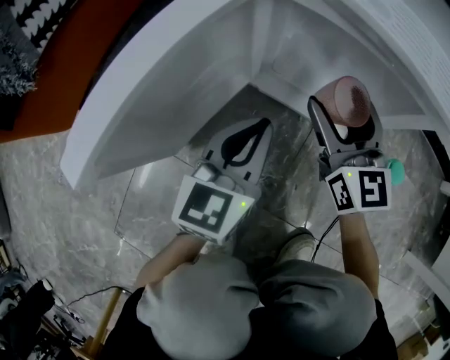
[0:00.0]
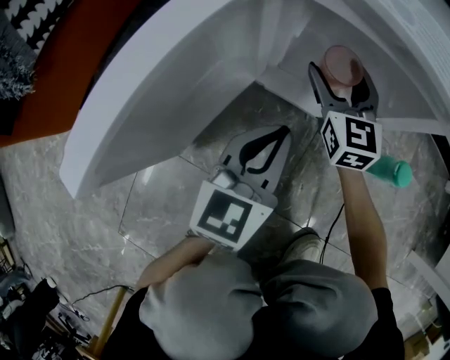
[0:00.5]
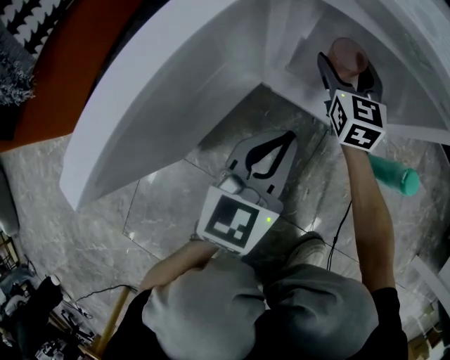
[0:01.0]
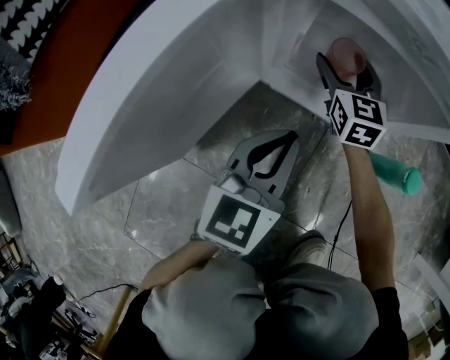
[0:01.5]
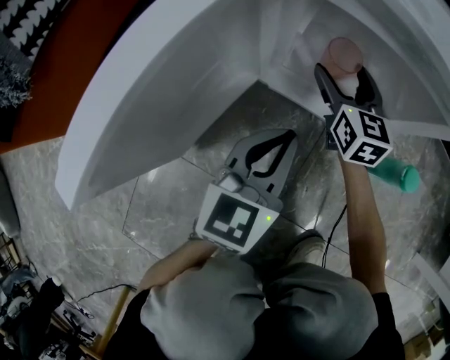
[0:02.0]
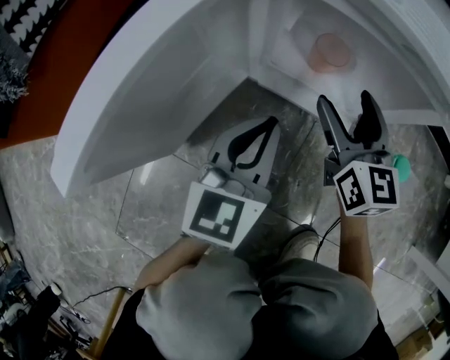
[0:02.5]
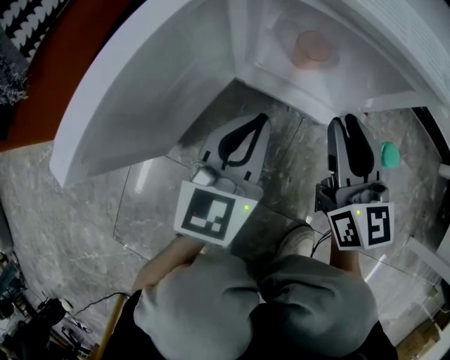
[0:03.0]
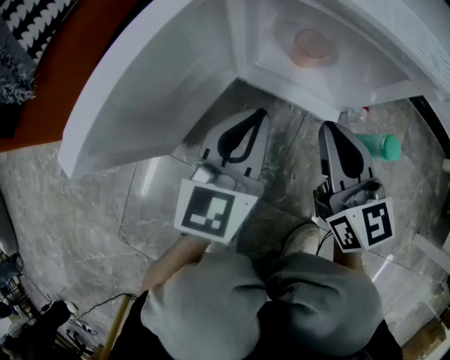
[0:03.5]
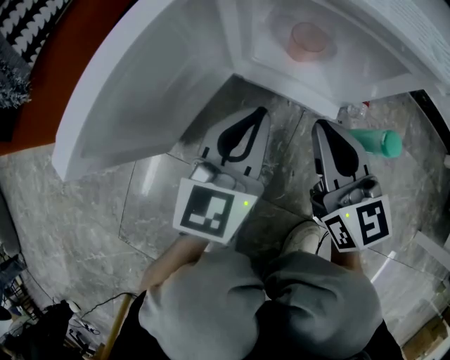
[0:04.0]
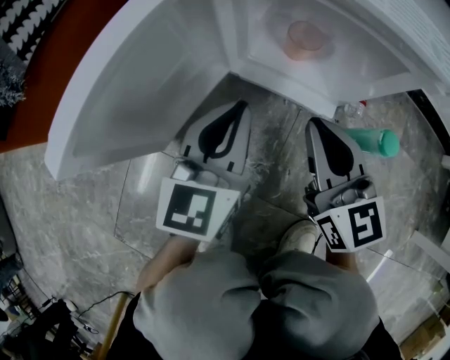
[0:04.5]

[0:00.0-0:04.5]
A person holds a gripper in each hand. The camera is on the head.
0:00.0 to 0:02.0: The right gripper shifts roughly 15 cm downward and forward.
0:02.0 to 0:04.5: The left gripper moves about 5 cm. Meanwhile the right gripper goes approximately 20 cm backward and upward, and closes.

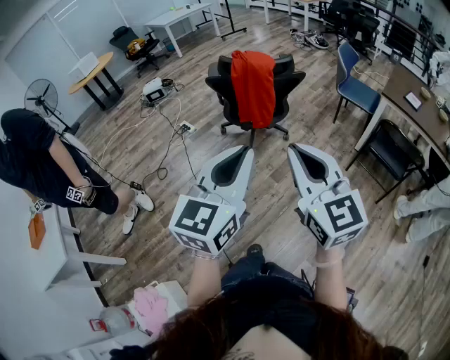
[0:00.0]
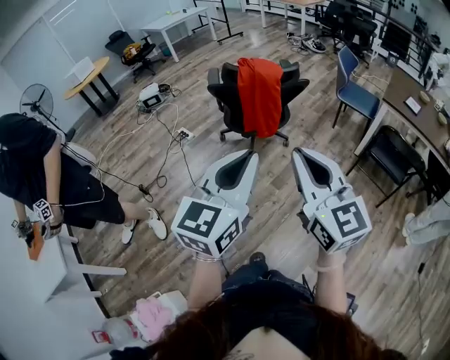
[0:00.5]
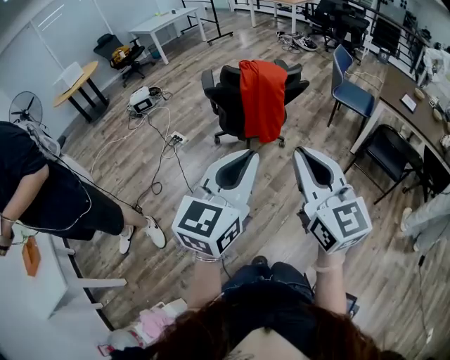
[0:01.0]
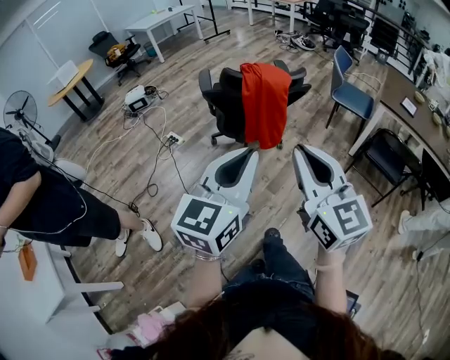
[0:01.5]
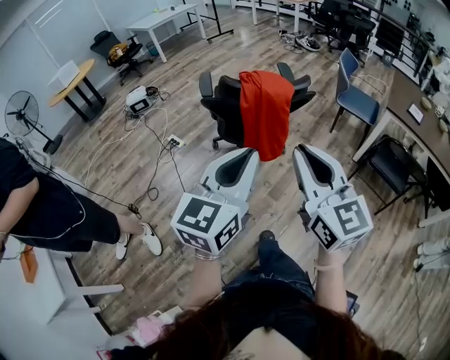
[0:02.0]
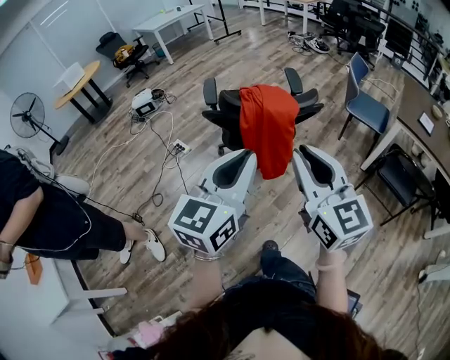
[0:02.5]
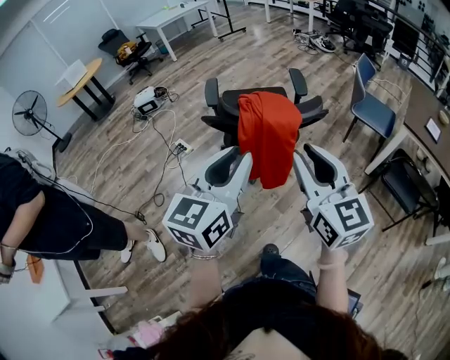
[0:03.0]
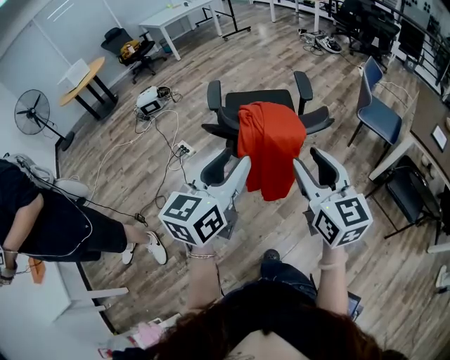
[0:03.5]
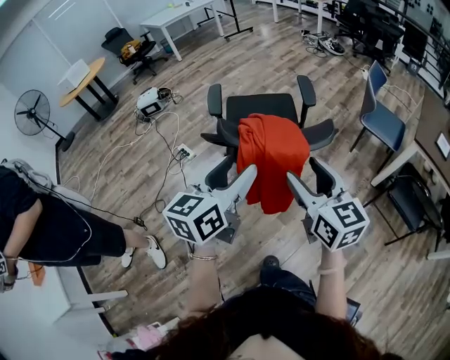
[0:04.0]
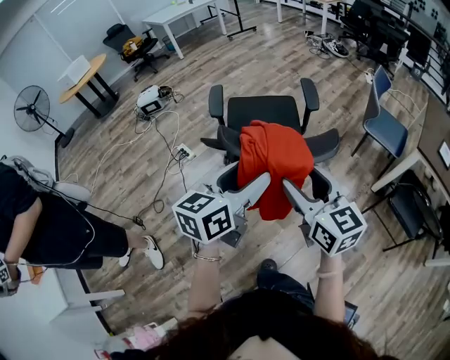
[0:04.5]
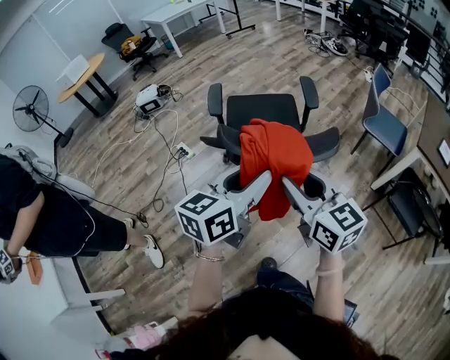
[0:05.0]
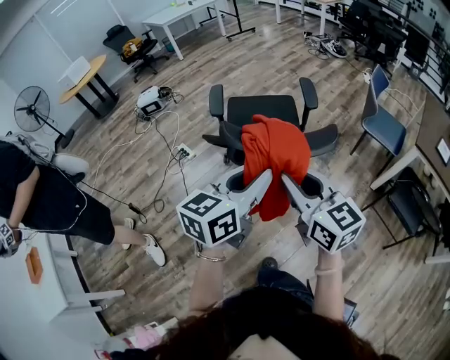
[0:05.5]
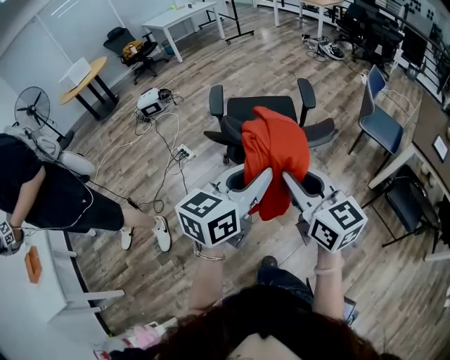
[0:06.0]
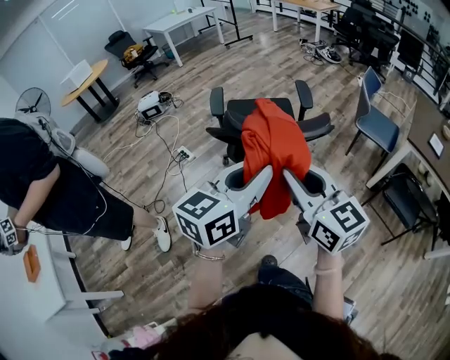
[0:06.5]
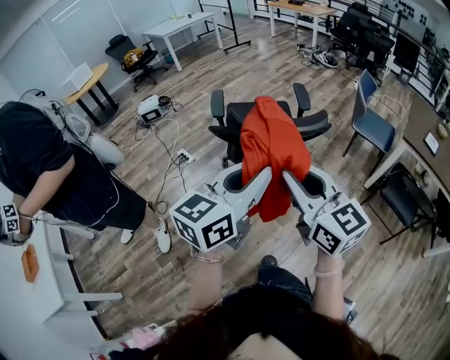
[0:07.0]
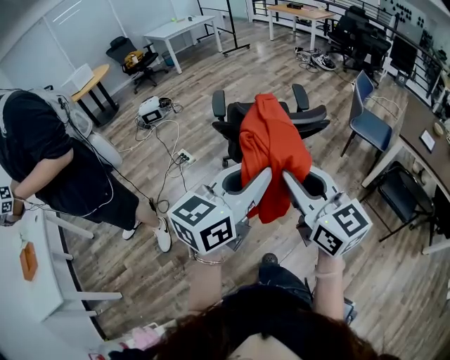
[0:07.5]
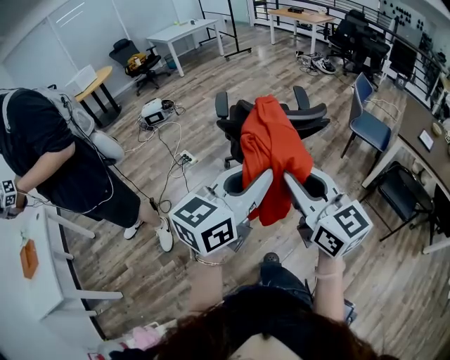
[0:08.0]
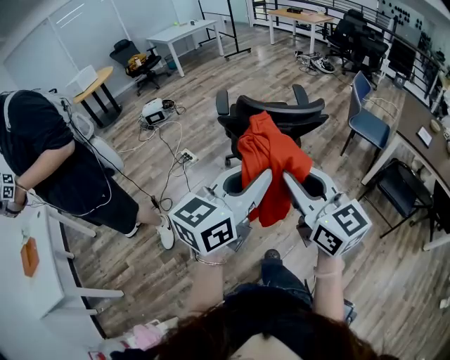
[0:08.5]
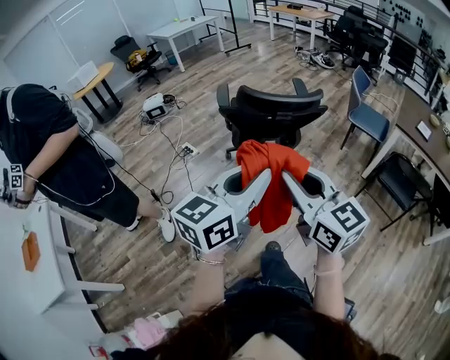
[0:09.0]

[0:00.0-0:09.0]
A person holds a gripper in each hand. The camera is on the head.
0:00.0 to 0:02.0: Both grippers move forward, some 20 cm.
0:02.0 to 0:04.5: Both grippers move forward, some 25 cm. The left gripper swivels approximately 20 degrees, and opens its fingers. Meanwhile the right gripper opens.
0:04.5 to 0:07.0: The grippers both shift backward and upward by about 15 cm. The right gripper closes up. Meanwhile the left gripper closes its fingers.
0:07.0 to 0:09.0: Both grippers travel together backward, some 15 cm.

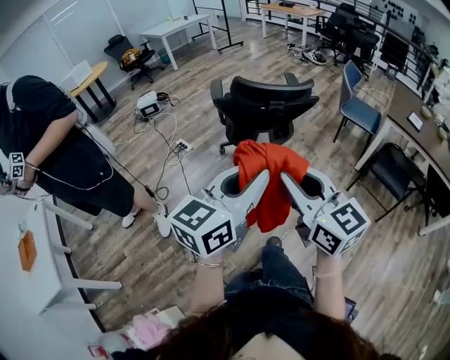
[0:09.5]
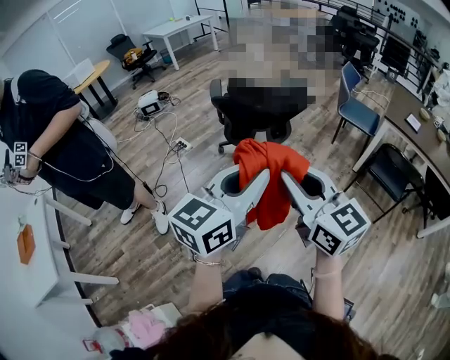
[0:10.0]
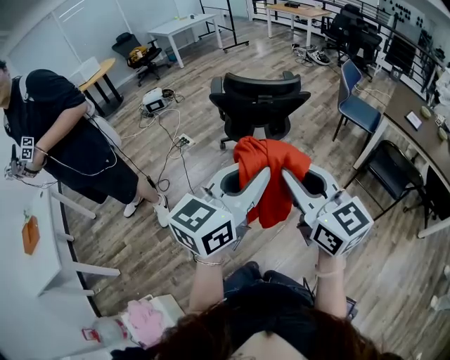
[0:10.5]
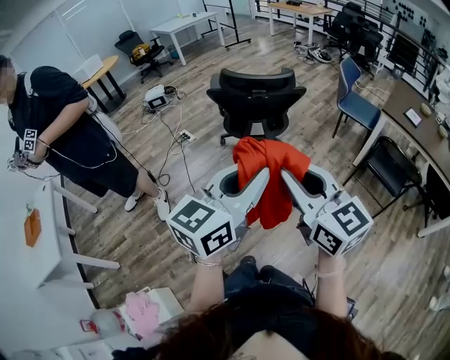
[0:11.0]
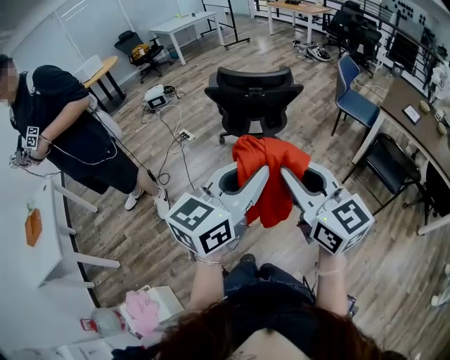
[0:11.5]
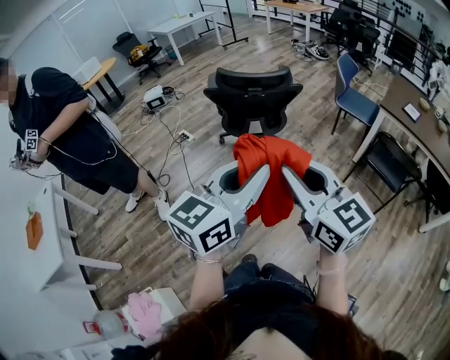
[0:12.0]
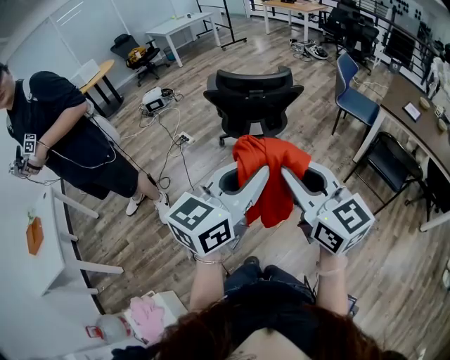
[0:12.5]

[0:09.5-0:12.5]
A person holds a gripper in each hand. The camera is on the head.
0:09.5 to 0:11.0: The two grippers go approximately 15 cm to the right and backward.
0:11.0 to 0:12.5: The grippers move only a little.

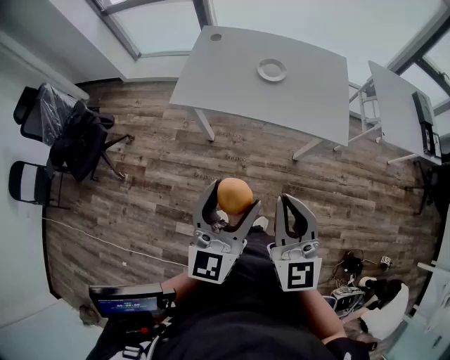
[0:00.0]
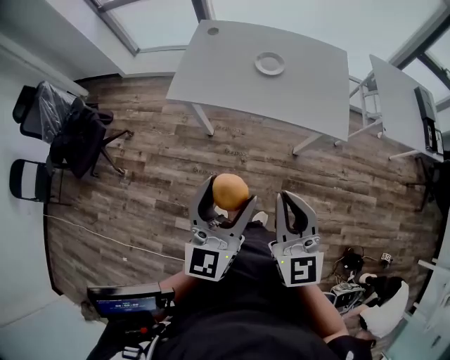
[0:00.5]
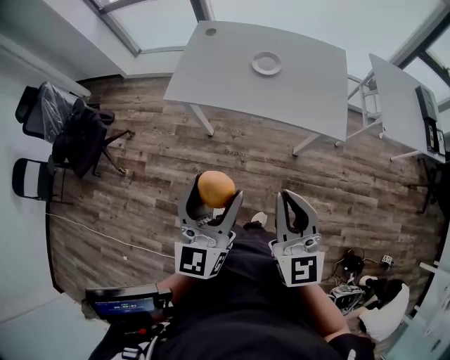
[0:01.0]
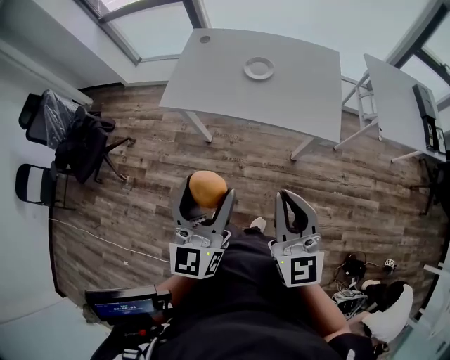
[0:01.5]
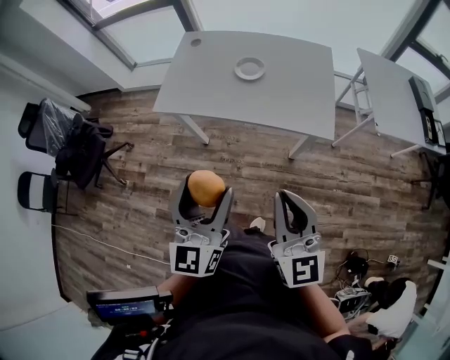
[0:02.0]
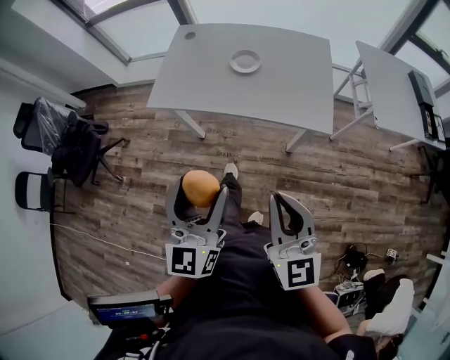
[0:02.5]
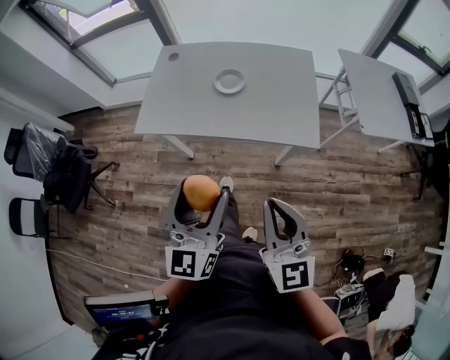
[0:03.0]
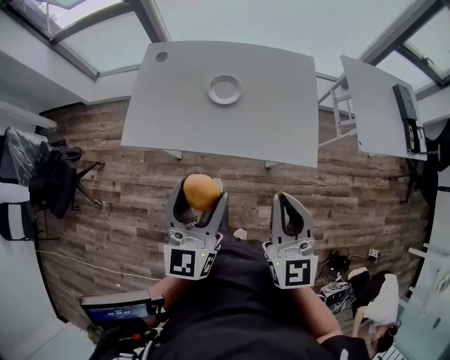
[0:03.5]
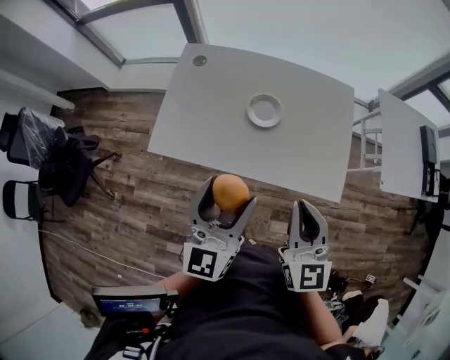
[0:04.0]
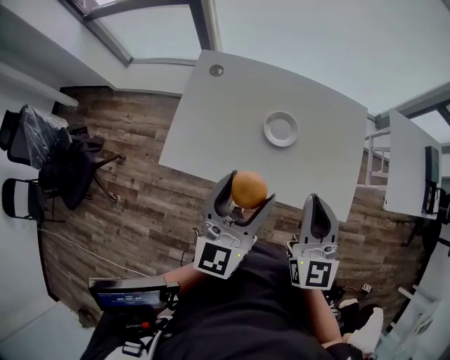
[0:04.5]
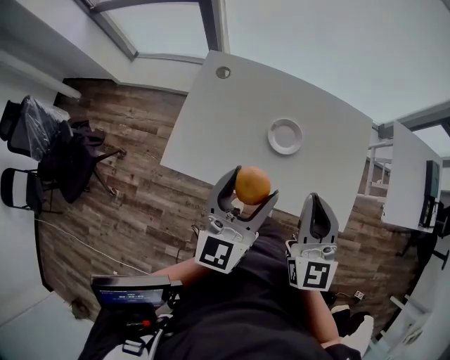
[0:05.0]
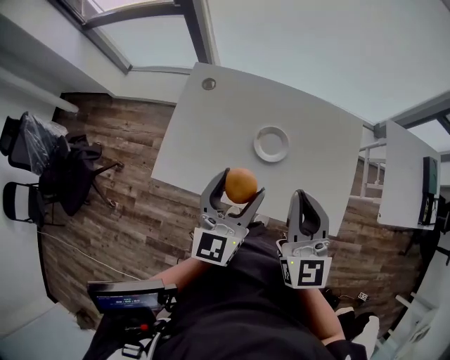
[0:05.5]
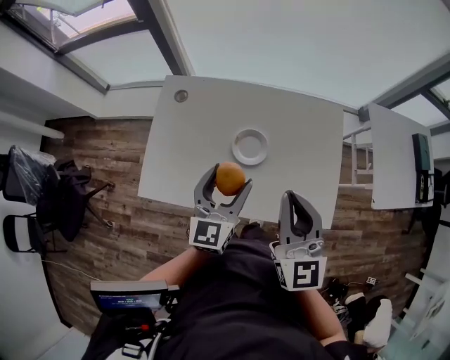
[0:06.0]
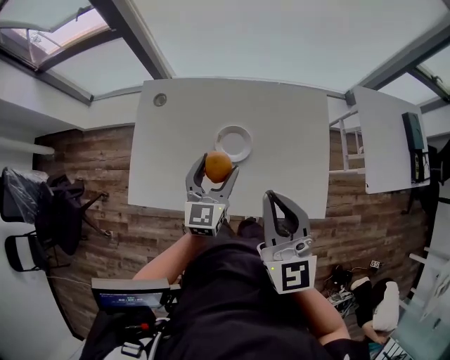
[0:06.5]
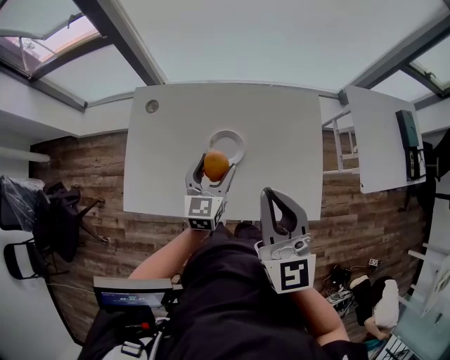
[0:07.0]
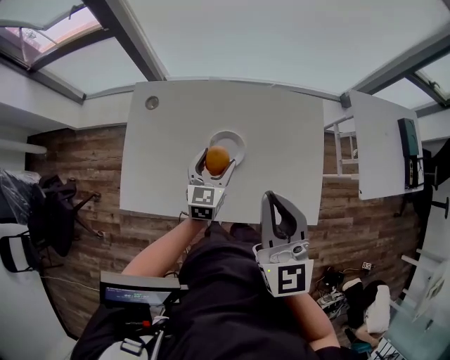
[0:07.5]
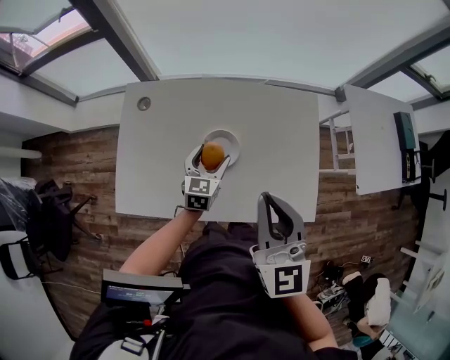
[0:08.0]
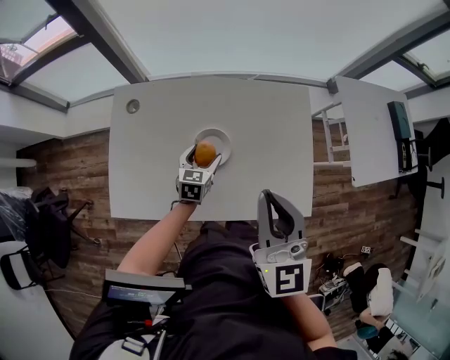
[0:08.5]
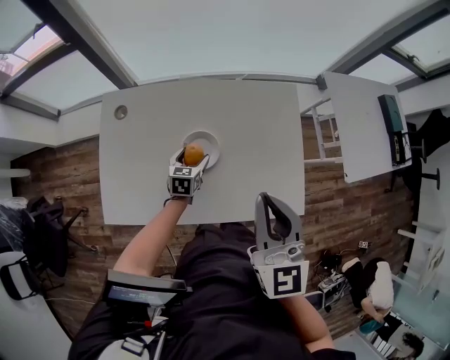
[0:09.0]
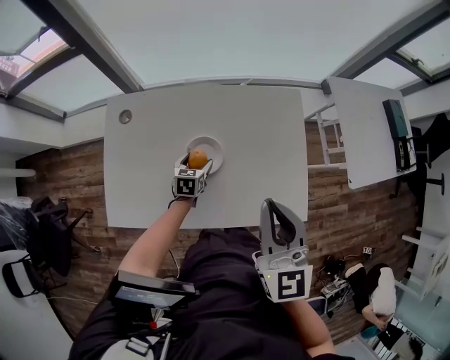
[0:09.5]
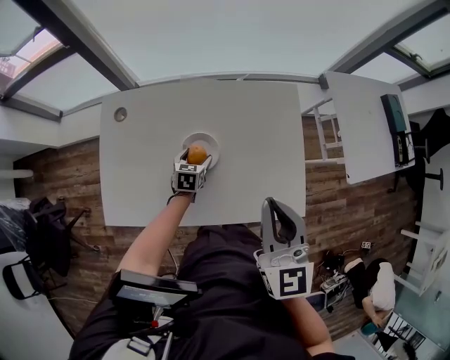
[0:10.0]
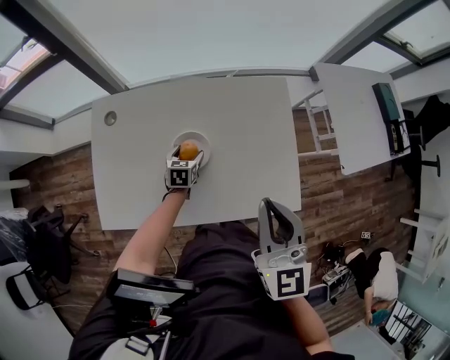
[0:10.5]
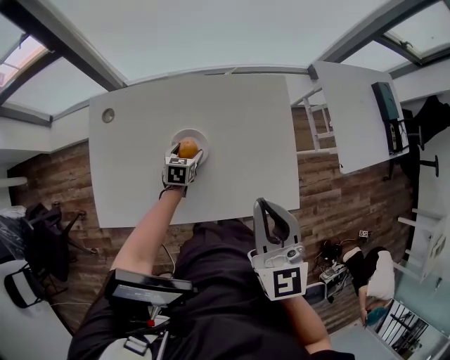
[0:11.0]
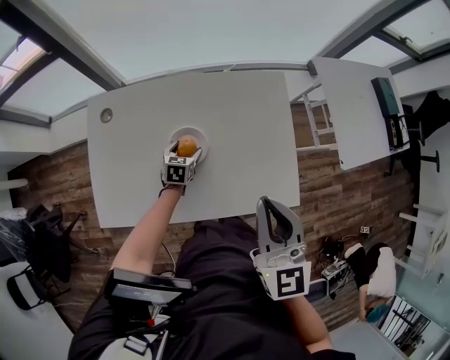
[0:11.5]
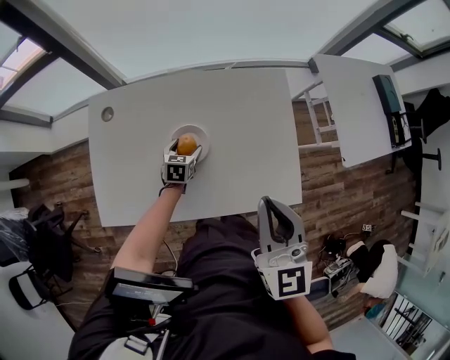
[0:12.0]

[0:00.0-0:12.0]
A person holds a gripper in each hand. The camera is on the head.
0:00.0 to 0:02.0: The left gripper travels to the right by about 5 cm, while the right gripper shifts approximately 10 cm to the right.
0:02.0 to 0:04.0: Both grippers move forward, about 25 cm.
0:04.0 to 0:06.0: Both grippers travel together forward, some 15 cm.
0:06.0 to 0:08.0: The left gripper is displaced downward and forward by some 20 cm.
0:08.0 to 0:10.0: The right gripper heads to the right, covering about 5 cm, while the left gripper moves downward, roughly 15 cm, and rotates some 20 degrees.
0:10.0 to 0:12.0: The grippers move only a little.
